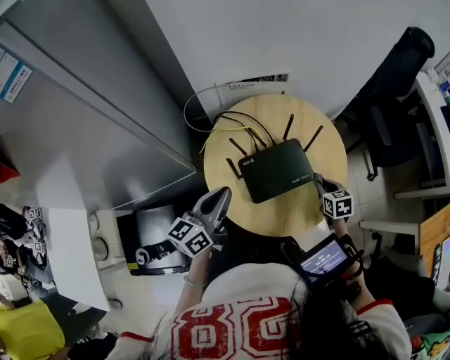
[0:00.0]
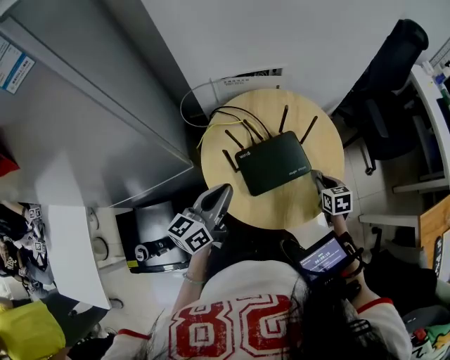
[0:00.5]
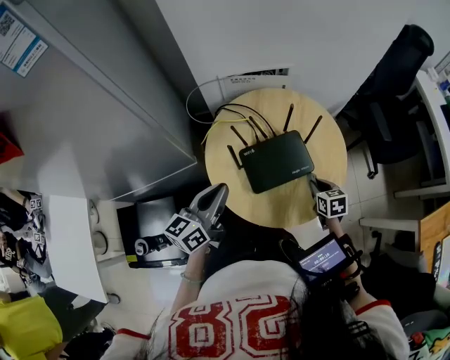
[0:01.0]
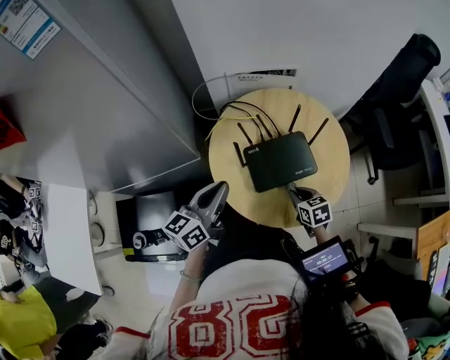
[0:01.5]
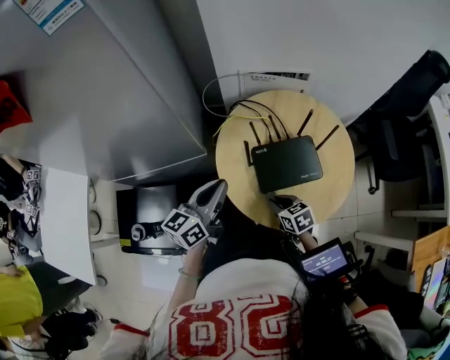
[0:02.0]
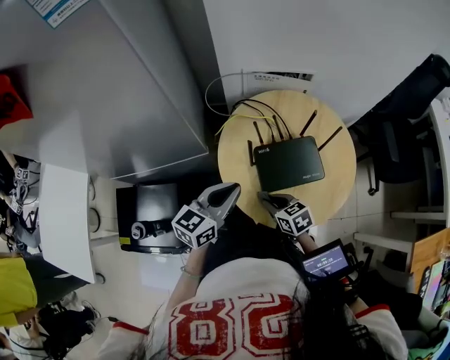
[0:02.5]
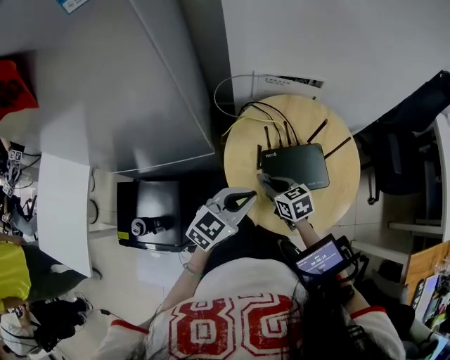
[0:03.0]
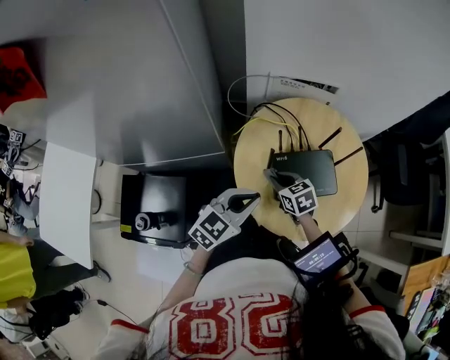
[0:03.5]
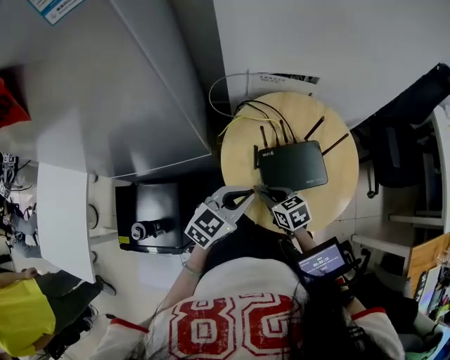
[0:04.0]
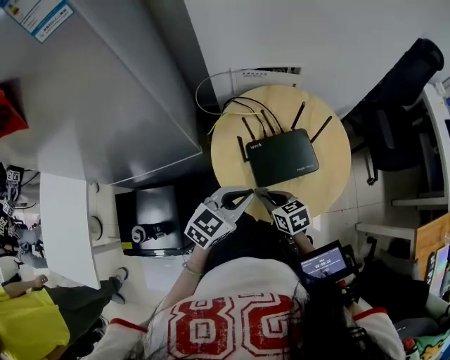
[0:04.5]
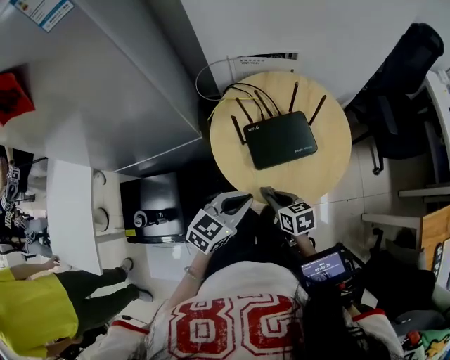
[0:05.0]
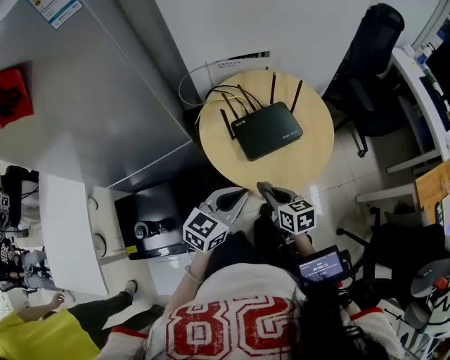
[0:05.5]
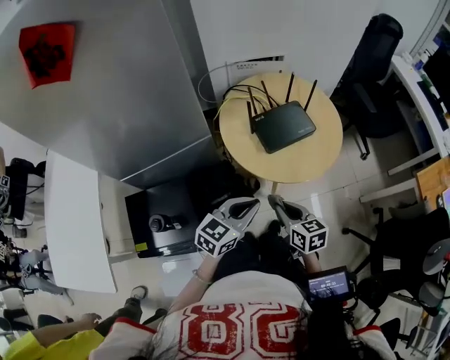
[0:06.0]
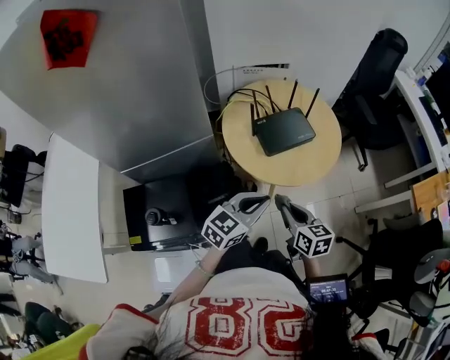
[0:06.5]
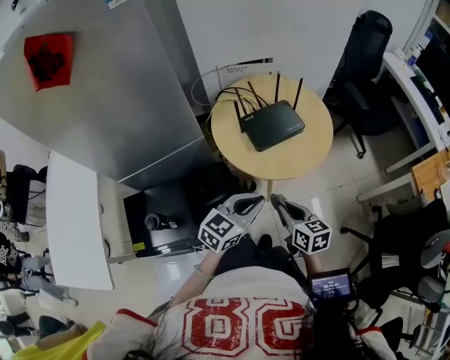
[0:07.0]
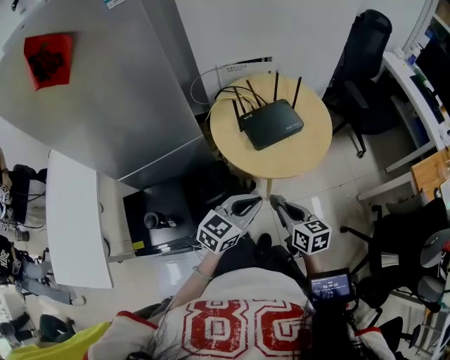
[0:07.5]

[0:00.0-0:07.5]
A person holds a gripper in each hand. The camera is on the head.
0:00.0 to 0:02.0: The right gripper shifts by approximately 25 cm, and rotates about 30 degrees. The left gripper moves approximately 5 cm.
0:02.0 to 0:04.0: The left gripper goes roughly 5 cm to the right, and changes its angle by some 40 degrees.
0:04.0 to 0:05.5: The left gripper moves backward, roughly 15 cm. The right gripper goes some 15 cm backward and to the right, and swivels approximately 30 degrees.
0:05.5 to 0:07.5: The right gripper goes about 10 cm backward and upward. The left gripper travels backward by approximately 10 cm.

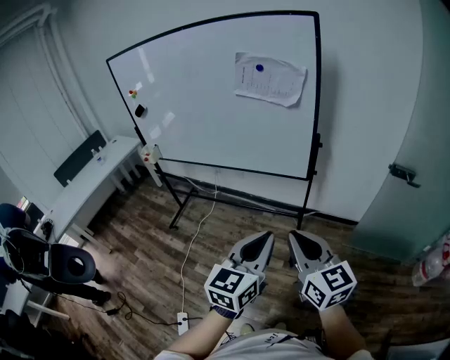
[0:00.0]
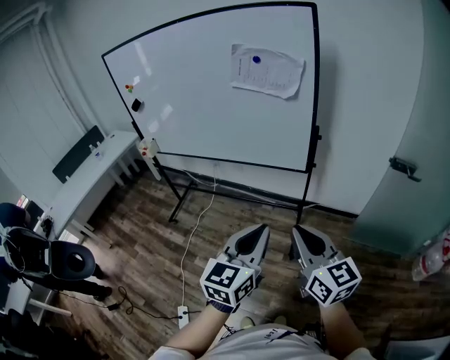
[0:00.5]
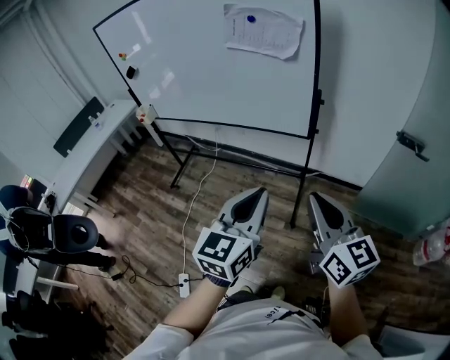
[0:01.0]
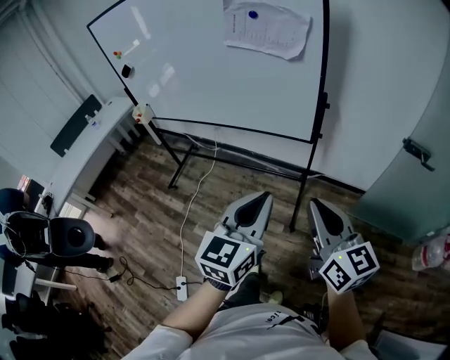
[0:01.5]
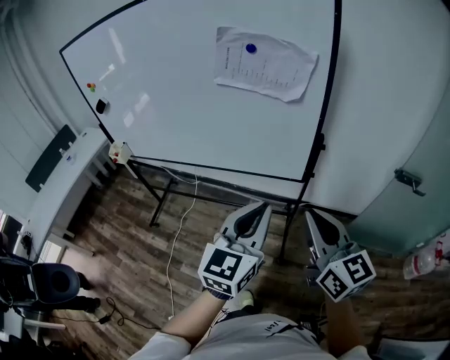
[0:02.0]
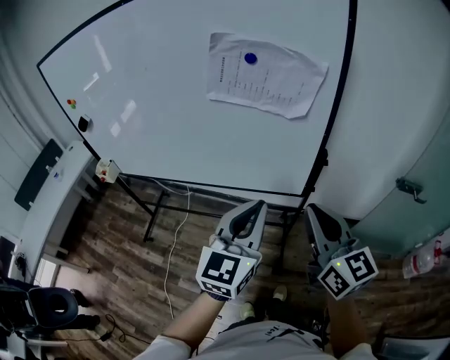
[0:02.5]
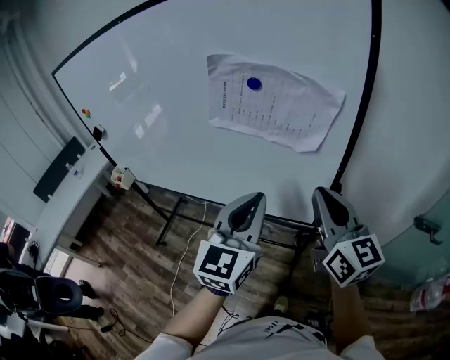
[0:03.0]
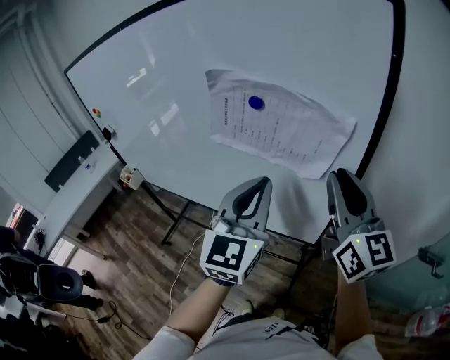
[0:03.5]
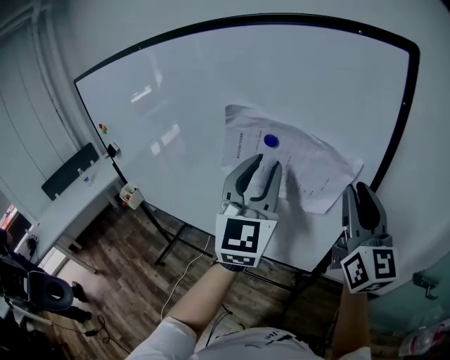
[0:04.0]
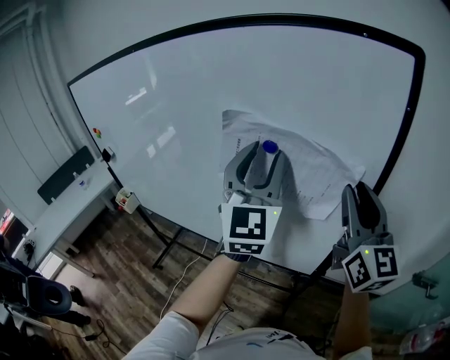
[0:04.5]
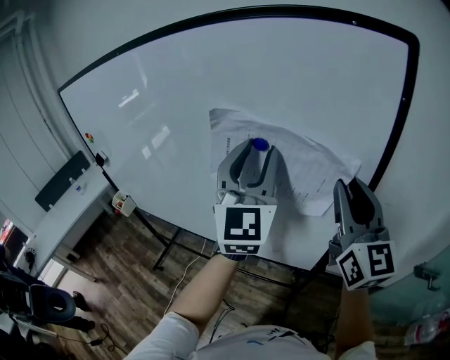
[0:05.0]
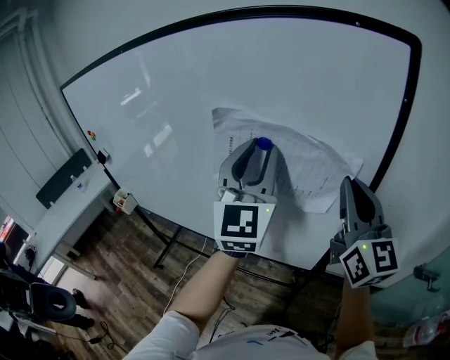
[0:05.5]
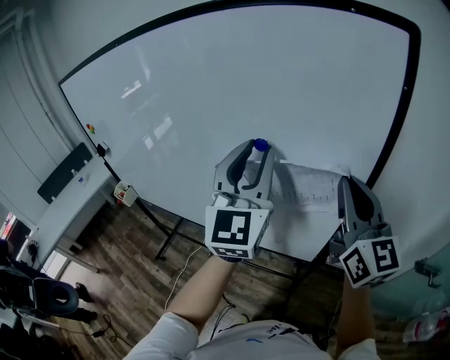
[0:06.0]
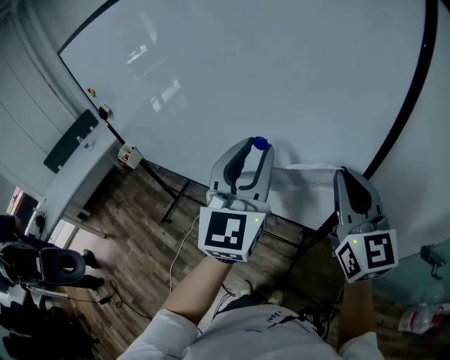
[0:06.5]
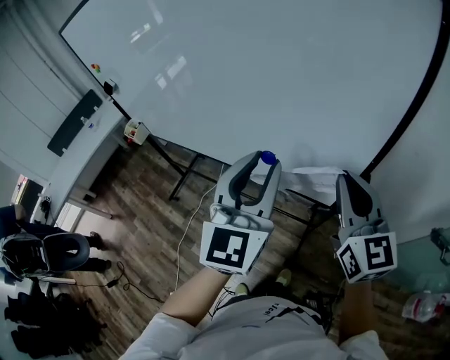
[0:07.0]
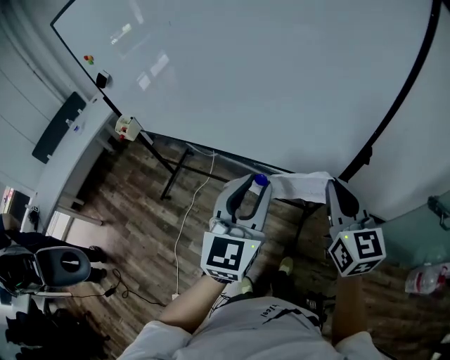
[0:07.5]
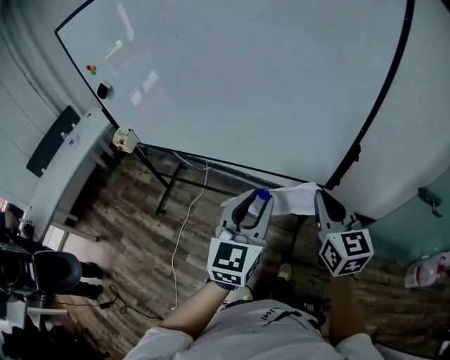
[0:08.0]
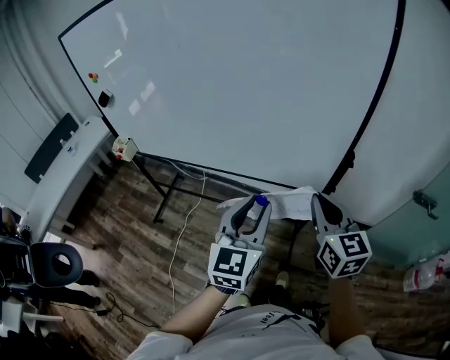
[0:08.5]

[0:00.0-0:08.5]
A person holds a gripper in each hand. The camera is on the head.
0:00.0 to 0:02.0: The grippers both shift forward by roughly 20 cm.
0:02.0 to 0:04.0: The grippers both shift forward and upward by roughly 40 cm. The left gripper rotates about 30 degrees, and opens its fingers. The right gripper changes its angle by roughly 20 degrees.
0:04.0 to 0:06.5: Both grippers travel together downward, some 5 cm.
0:06.5 to 0:08.5: Both grippers travel together backward, downward and to the left, some 25 cm. The left gripper turns by approximately 20 degrees.

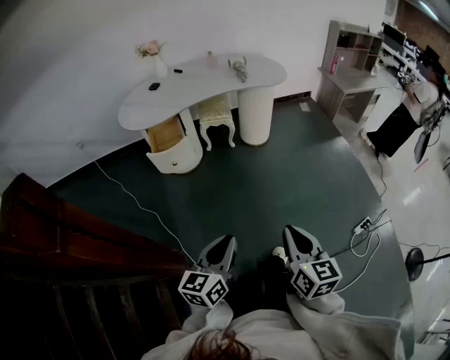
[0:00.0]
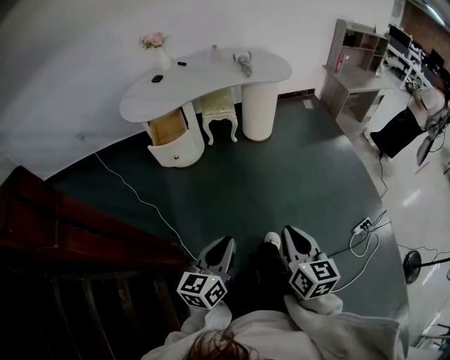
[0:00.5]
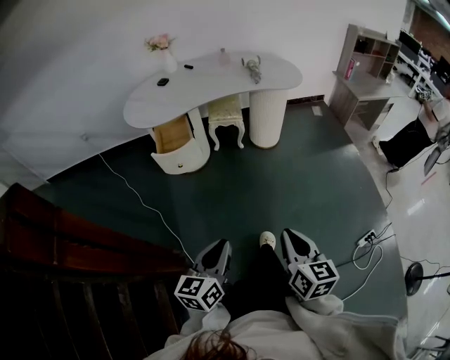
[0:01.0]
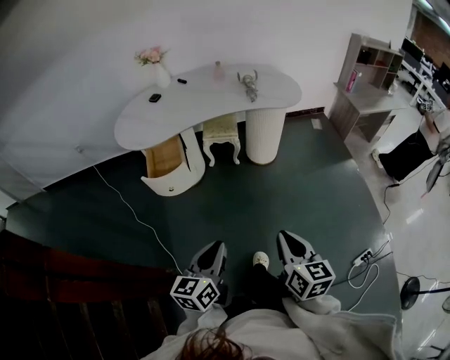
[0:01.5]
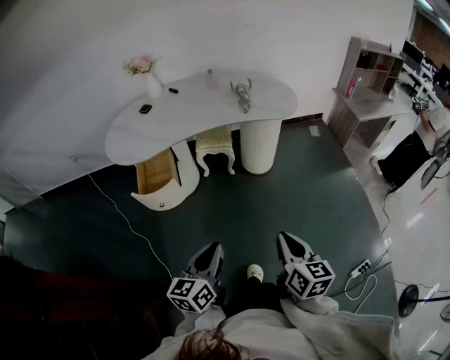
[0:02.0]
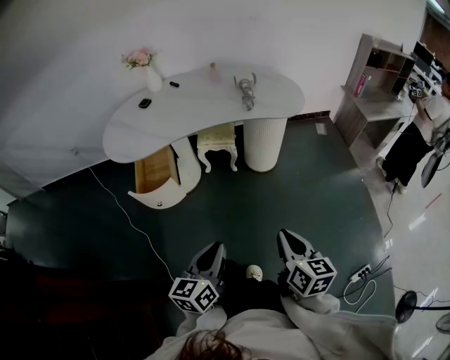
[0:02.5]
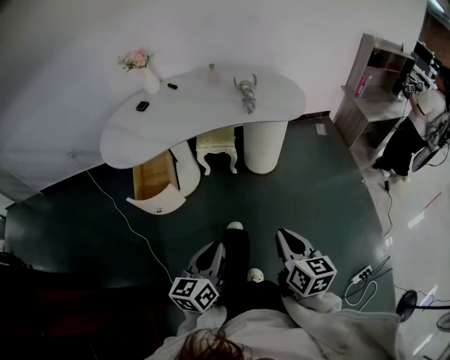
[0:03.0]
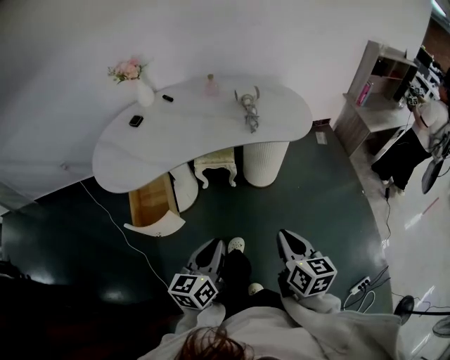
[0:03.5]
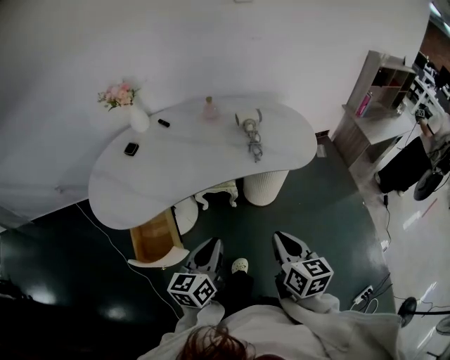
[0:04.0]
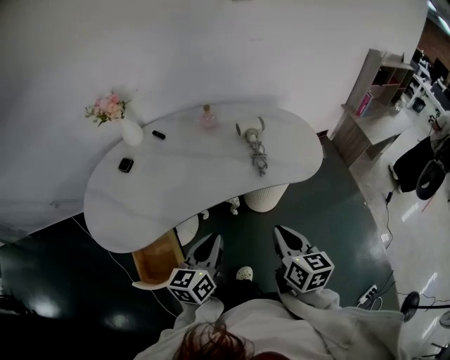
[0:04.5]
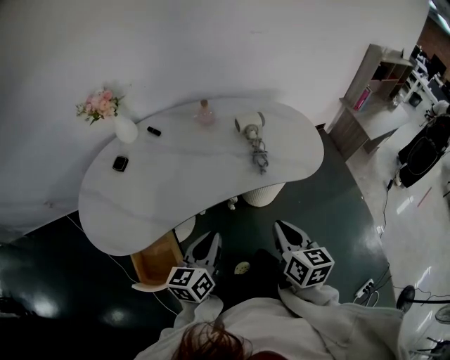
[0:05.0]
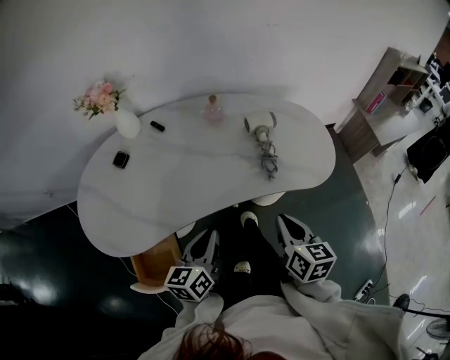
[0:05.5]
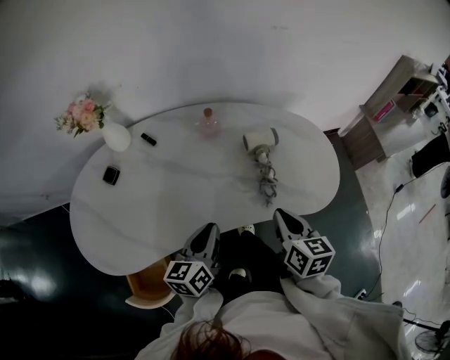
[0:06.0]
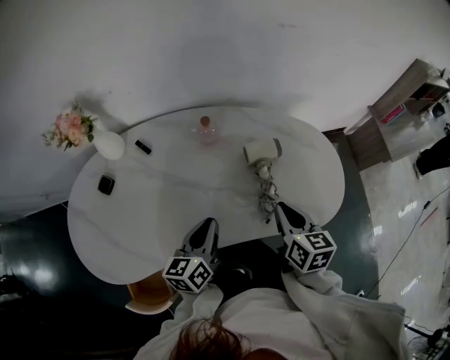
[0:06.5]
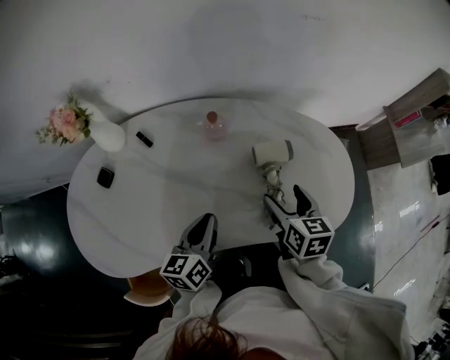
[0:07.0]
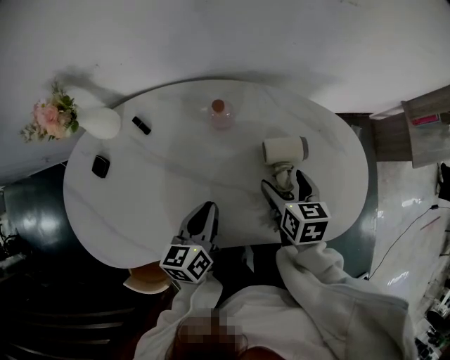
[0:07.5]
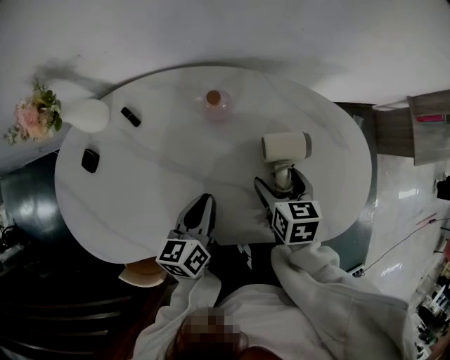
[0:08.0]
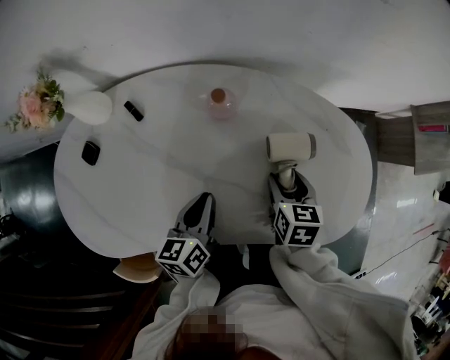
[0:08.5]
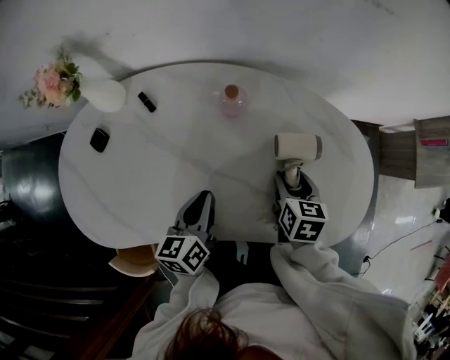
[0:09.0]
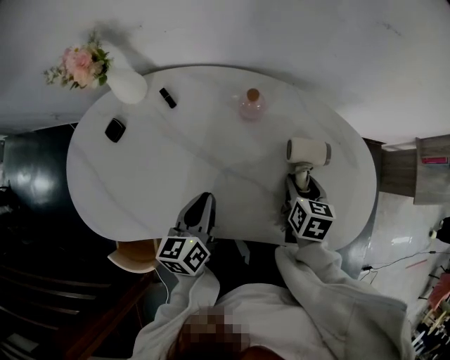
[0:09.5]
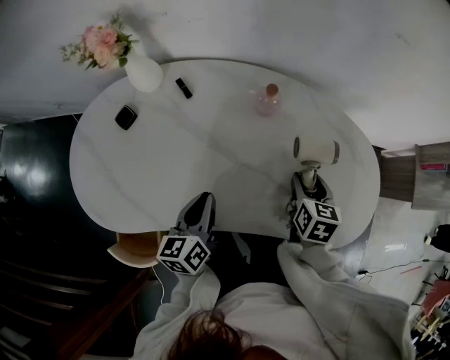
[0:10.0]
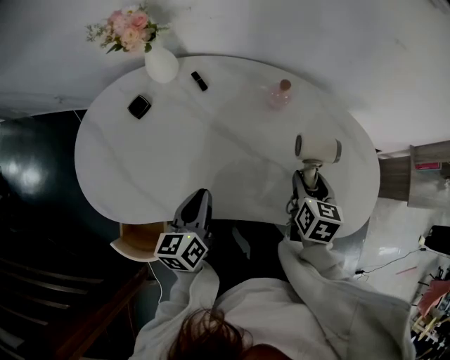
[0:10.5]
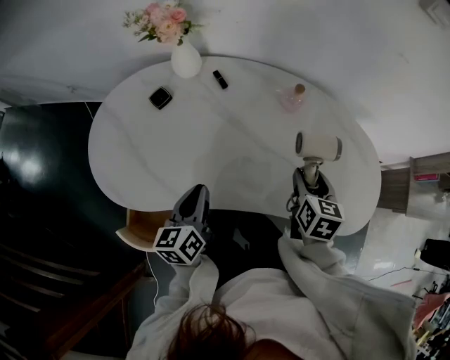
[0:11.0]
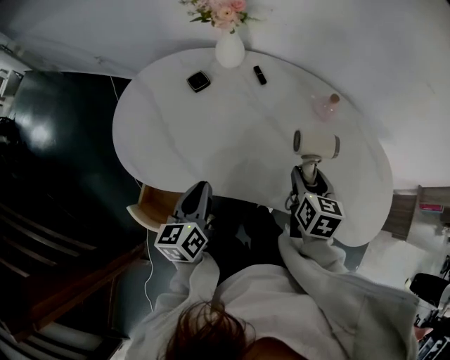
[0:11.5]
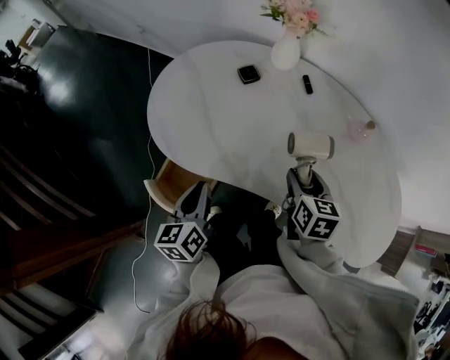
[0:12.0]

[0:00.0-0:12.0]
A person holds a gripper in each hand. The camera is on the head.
0:00.0 to 0:02.0: Both grippers travel together forward, approximately 25 cm.
0:02.0 to 0:04.0: Both grippers move forward, roughly 30 cm.
0:04.0 to 0:06.0: The grippers both shift forward by approximately 30 cm.
0:06.0 to 0:08.0: Both grippers travel together forward and downward, some 20 cm. The right gripper swivels some 20 degrees, and opens its fingers.
0:08.0 to 0:10.0: The right gripper closes, while the left gripper goes about 10 cm to the left and backward.
0:10.0 to 0:12.0: The right gripper moves about 30 cm, and turns by roughly 30 degrees. The left gripper ends up approximately 30 cm from where it was, and swivels some 30 degrees.
